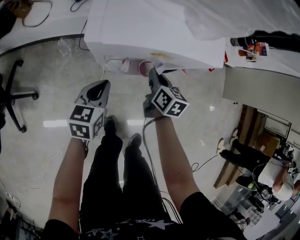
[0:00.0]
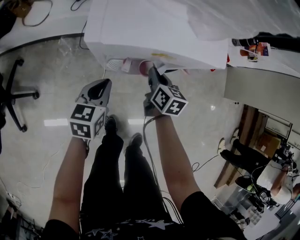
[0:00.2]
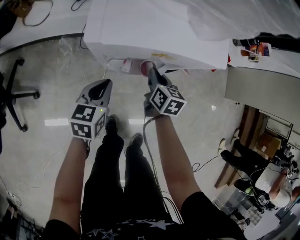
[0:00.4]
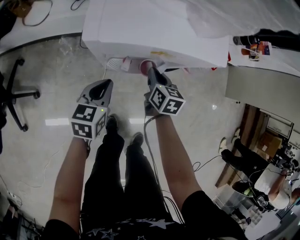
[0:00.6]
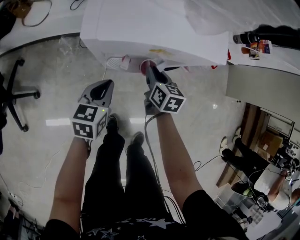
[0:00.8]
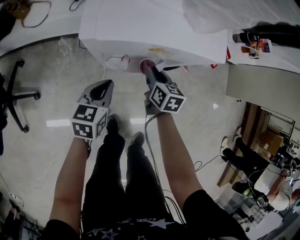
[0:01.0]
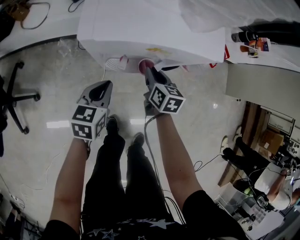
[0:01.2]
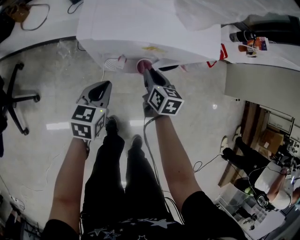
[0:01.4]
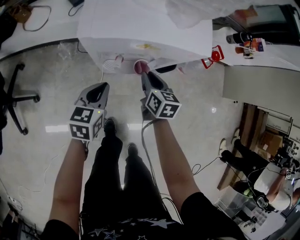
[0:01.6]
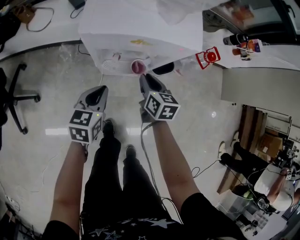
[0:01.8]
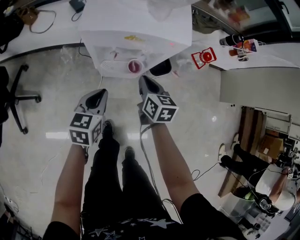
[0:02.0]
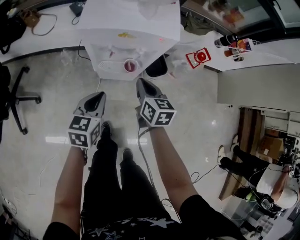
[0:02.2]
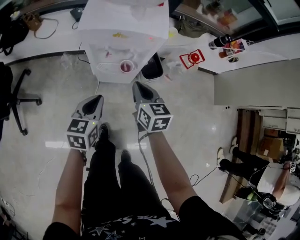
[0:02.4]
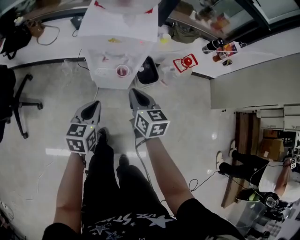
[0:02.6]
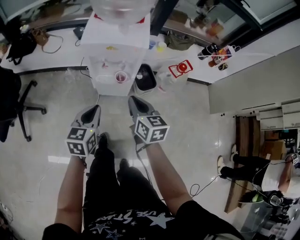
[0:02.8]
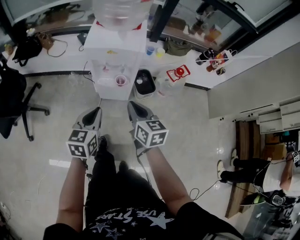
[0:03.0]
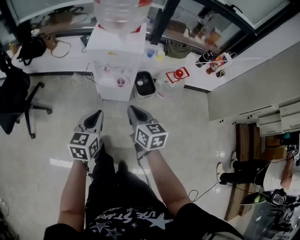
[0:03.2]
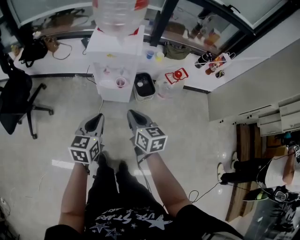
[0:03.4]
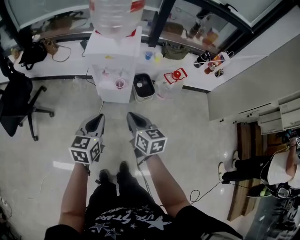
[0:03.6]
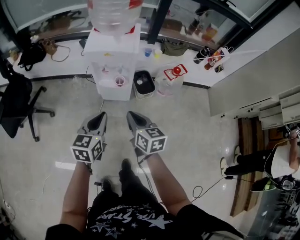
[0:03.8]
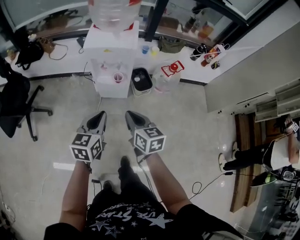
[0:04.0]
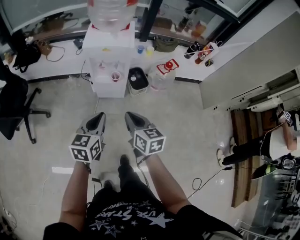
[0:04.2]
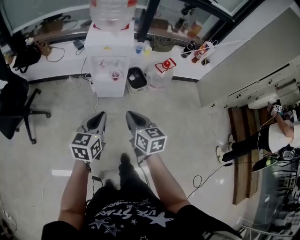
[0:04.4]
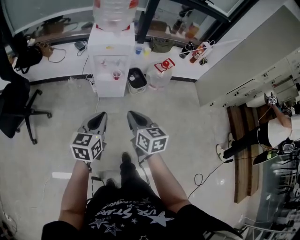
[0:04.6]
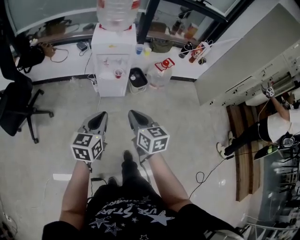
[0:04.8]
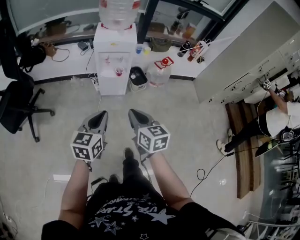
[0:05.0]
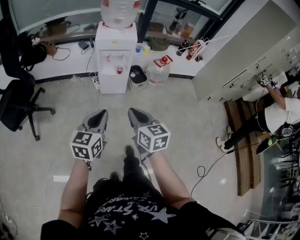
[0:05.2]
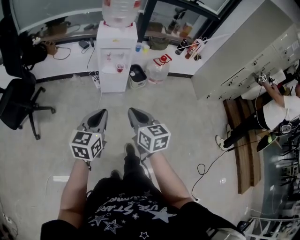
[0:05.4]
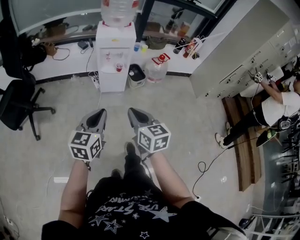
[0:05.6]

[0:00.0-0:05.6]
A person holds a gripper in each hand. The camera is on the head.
0.0 to 1.4 s: The grippers move only a little.
1.4 to 2.8 s: The right gripper is displaced upward and backward by approximately 30 cm, and changes its angle by roughly 20 degrees, while the left gripper is displaced backward and upward by some 25 cm.
2.8 to 4.2 s: Both grippers move backward and upward, roughly 15 cm.
4.2 to 5.6 s: The right gripper moves backward, some 20 cm. Meanwhile the left gripper moves backward and to the left, about 20 cm.

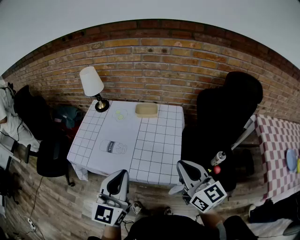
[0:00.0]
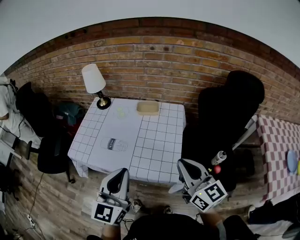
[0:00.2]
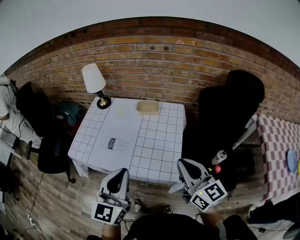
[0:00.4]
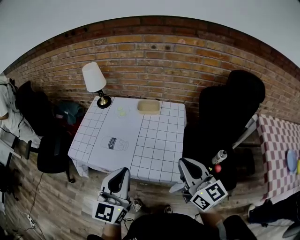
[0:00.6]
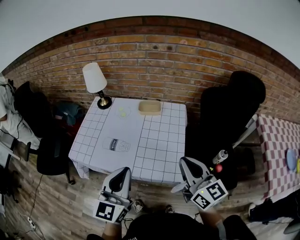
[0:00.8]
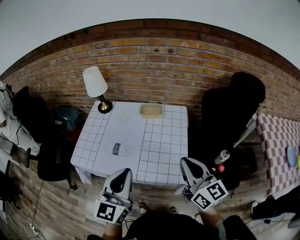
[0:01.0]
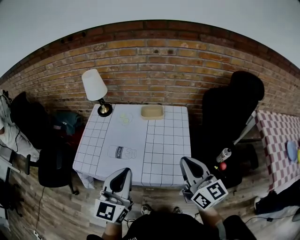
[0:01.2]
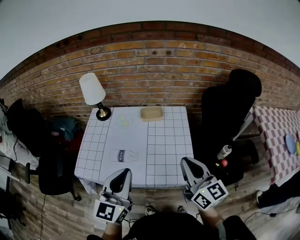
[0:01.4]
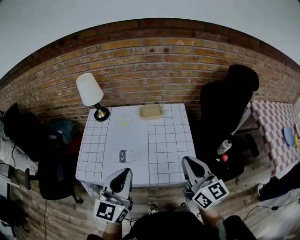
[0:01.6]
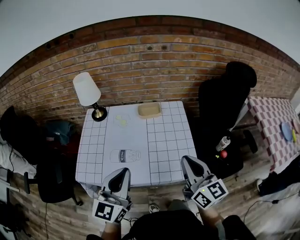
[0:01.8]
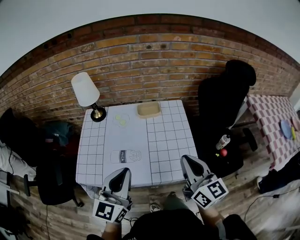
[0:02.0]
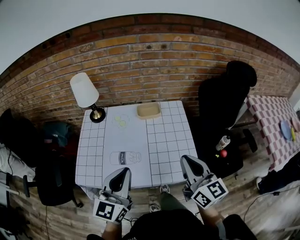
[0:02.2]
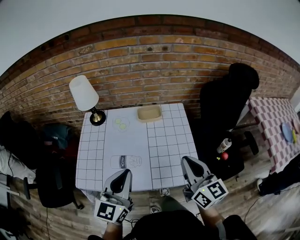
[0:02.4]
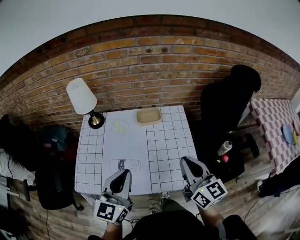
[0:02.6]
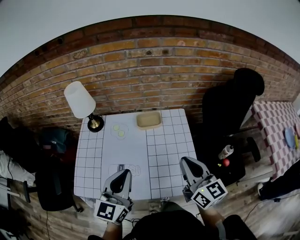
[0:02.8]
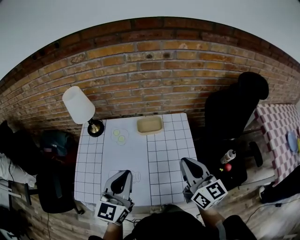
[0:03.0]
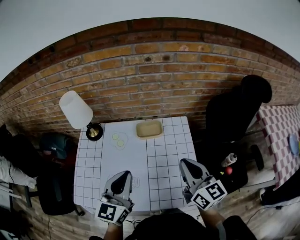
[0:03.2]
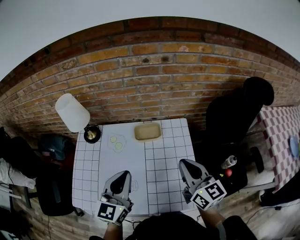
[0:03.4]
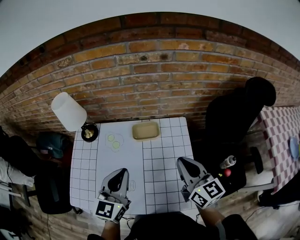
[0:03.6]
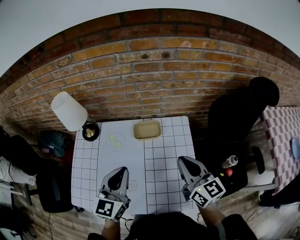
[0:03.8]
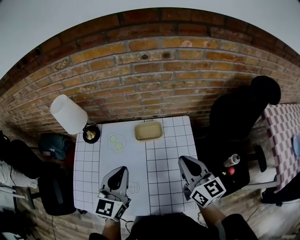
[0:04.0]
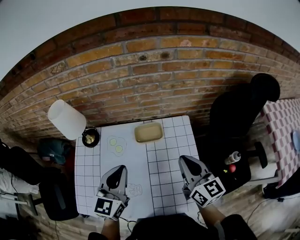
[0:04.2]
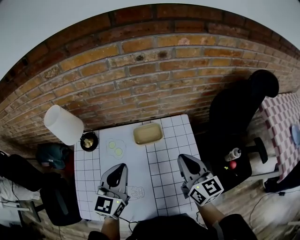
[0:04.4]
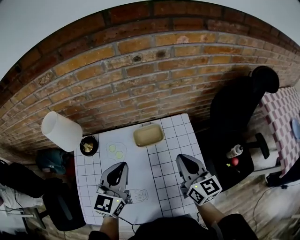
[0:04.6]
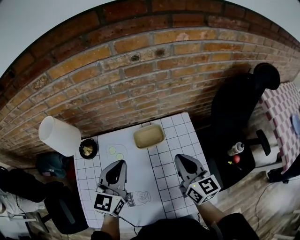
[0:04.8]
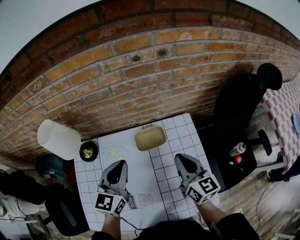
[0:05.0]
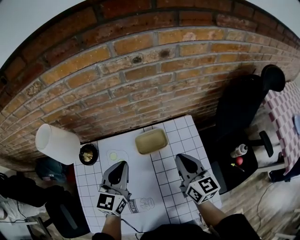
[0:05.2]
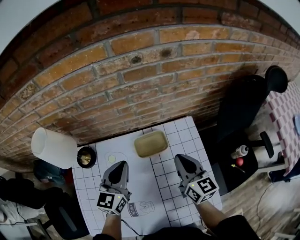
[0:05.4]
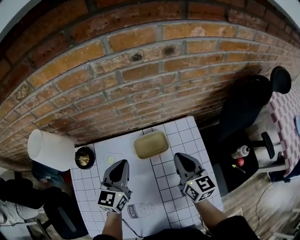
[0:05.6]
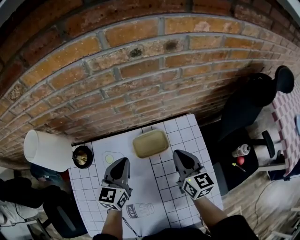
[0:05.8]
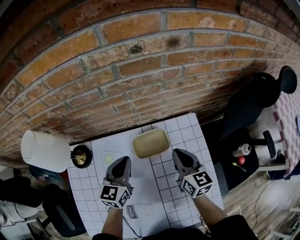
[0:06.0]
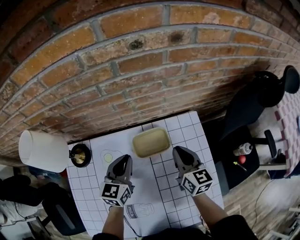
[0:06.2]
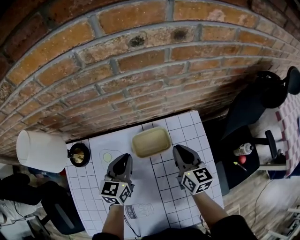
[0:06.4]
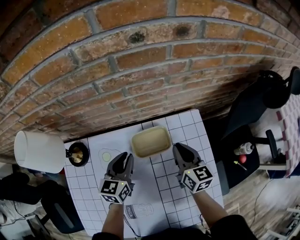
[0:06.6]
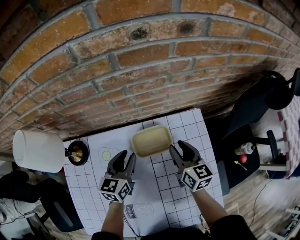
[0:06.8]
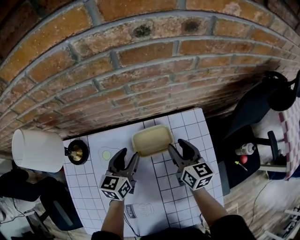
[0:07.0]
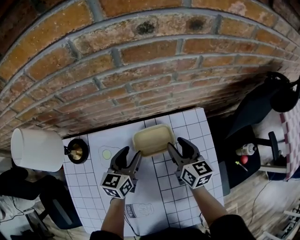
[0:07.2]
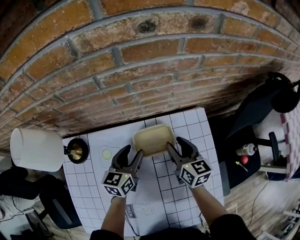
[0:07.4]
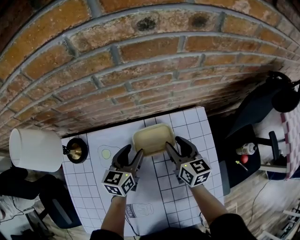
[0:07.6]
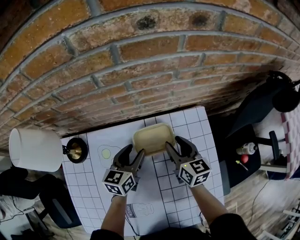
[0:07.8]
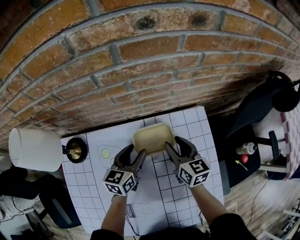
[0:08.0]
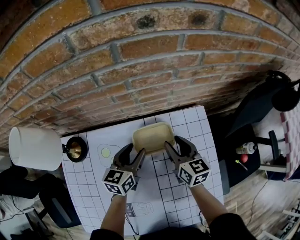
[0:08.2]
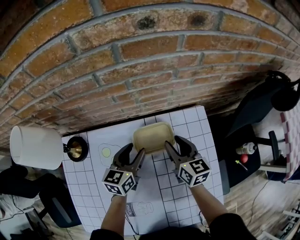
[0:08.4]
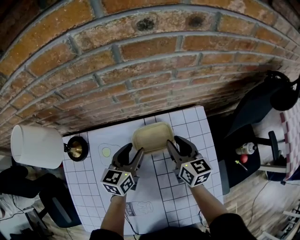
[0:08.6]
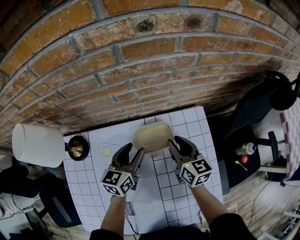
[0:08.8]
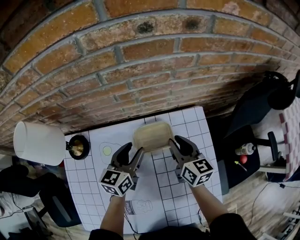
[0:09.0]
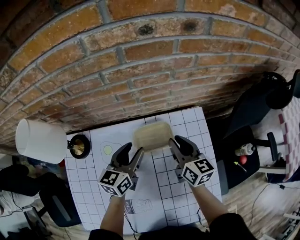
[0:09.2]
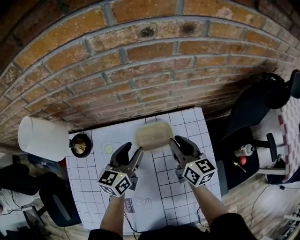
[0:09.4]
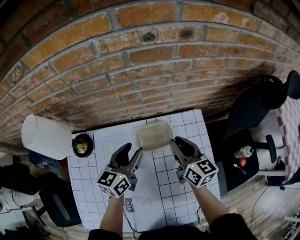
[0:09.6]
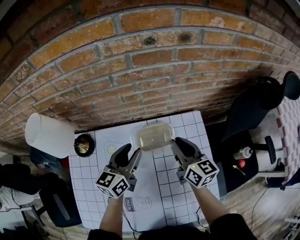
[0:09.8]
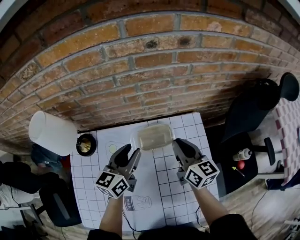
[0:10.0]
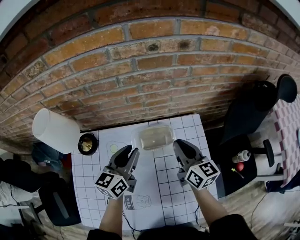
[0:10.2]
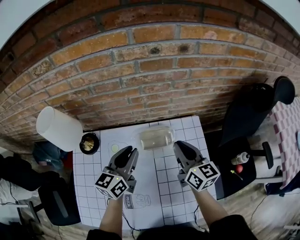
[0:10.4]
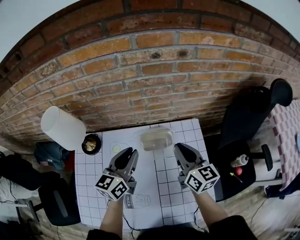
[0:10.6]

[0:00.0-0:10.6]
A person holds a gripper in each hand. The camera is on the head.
0.0 to 1.6 s: The left gripper shifts about 15 cm to the left and forward, while the right gripper heads to the left, covering about 10 cm.
1.6 to 3.0 s: The grippers both shift forward by some 15 cm.
3.0 to 4.6 s: The right gripper heads forward and downward, covering roughly 15 cm, while the left gripper is displaced forward by about 20 cm.
4.6 to 6.0 s: The grippers both shift downward and forward by some 20 cm.
6.0 to 7.6 s: The grippers both shift downward by about 10 cm. The left gripper opens. Meanwhile the right gripper opens.
7.6 to 9.0 s: The grippers move only a little.
9.0 to 10.6 s: Both grippers travel together upward and backward, roughly 15 cm. The left gripper closes up.

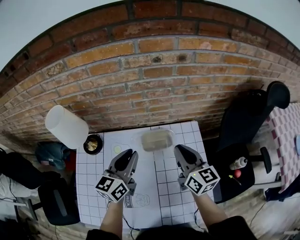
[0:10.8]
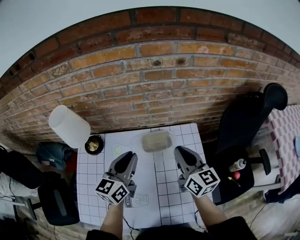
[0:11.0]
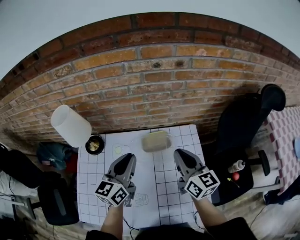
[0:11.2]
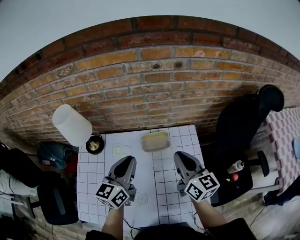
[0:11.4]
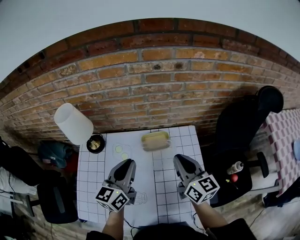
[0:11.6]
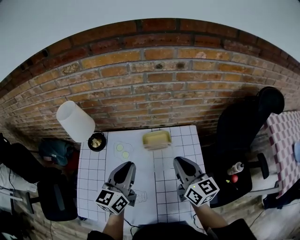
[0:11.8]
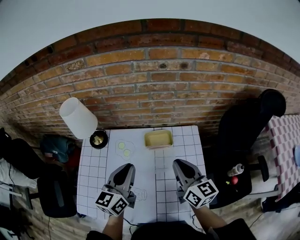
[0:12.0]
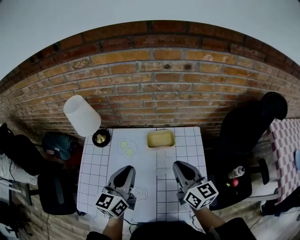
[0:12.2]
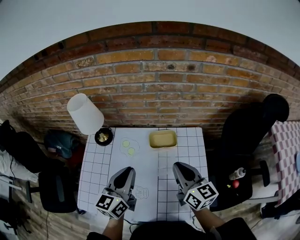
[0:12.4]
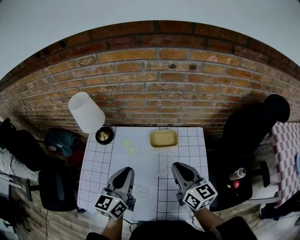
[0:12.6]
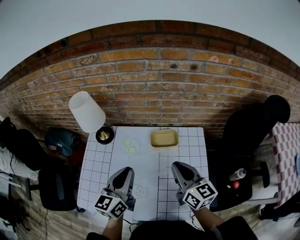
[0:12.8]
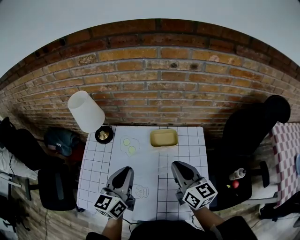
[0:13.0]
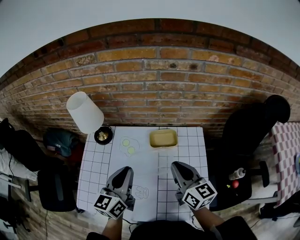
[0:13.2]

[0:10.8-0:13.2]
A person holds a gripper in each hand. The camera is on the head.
10.8 to 12.0 s: The grippers both shift backward by approximately 10 cm.
12.0 to 13.2 s: The grippers stay close to where they were, moving slightly.

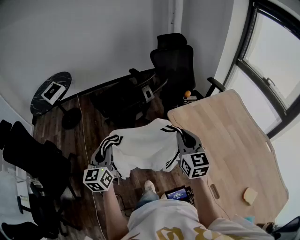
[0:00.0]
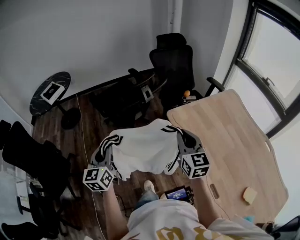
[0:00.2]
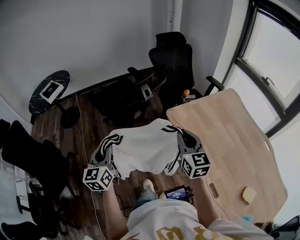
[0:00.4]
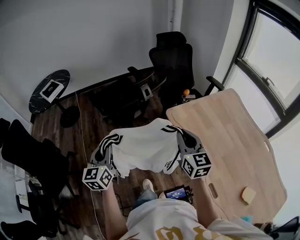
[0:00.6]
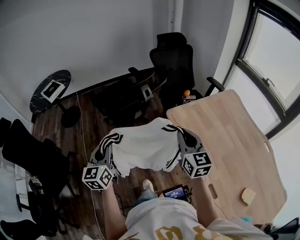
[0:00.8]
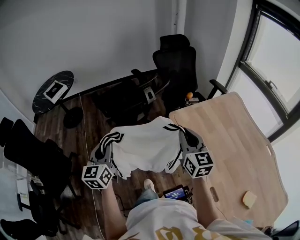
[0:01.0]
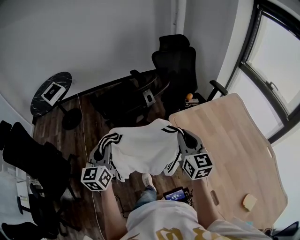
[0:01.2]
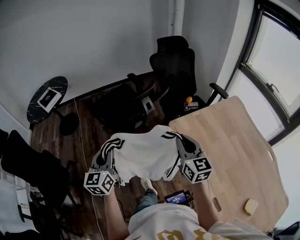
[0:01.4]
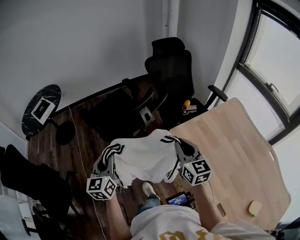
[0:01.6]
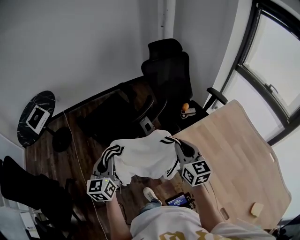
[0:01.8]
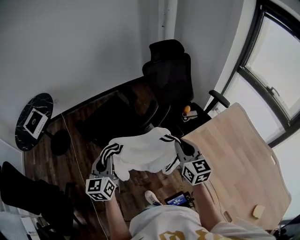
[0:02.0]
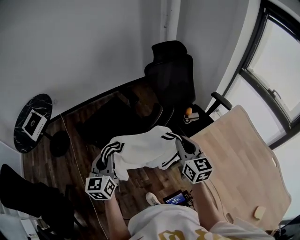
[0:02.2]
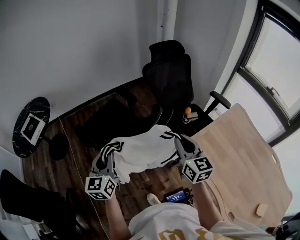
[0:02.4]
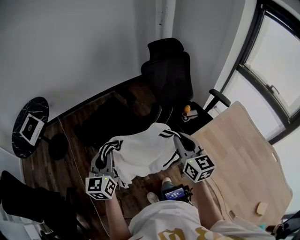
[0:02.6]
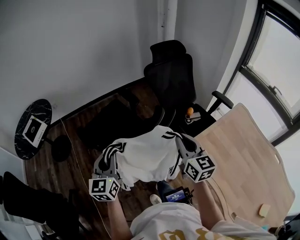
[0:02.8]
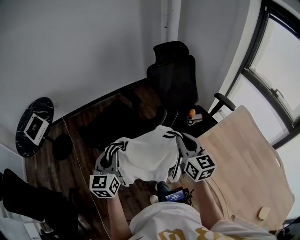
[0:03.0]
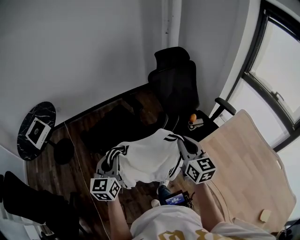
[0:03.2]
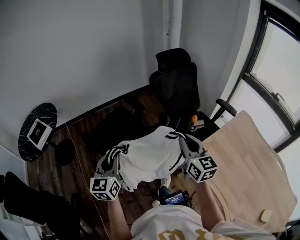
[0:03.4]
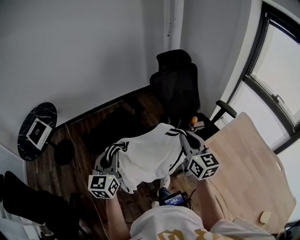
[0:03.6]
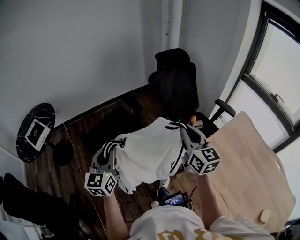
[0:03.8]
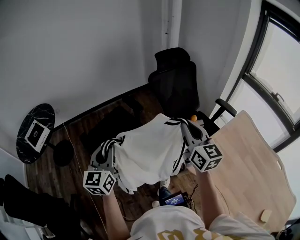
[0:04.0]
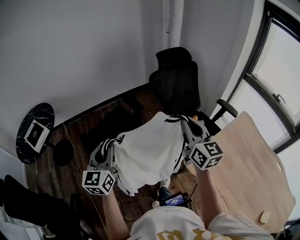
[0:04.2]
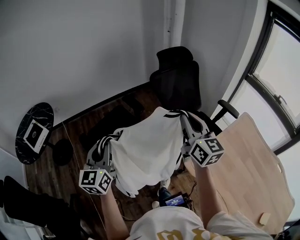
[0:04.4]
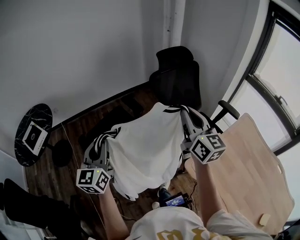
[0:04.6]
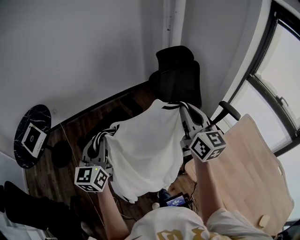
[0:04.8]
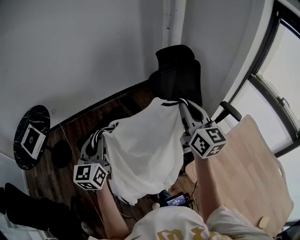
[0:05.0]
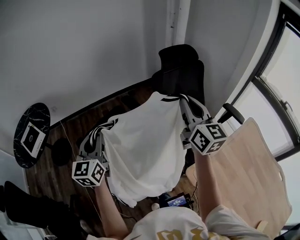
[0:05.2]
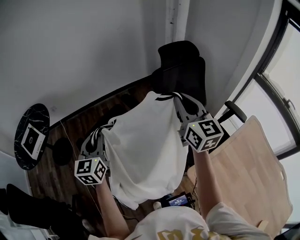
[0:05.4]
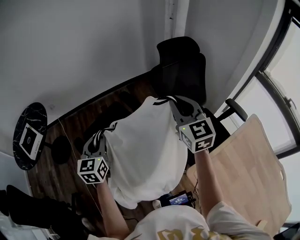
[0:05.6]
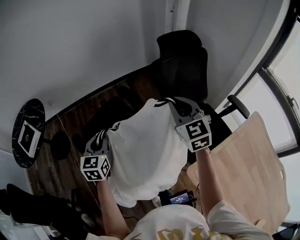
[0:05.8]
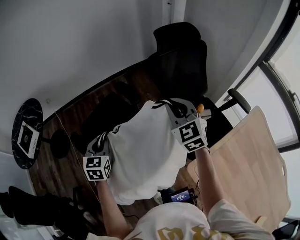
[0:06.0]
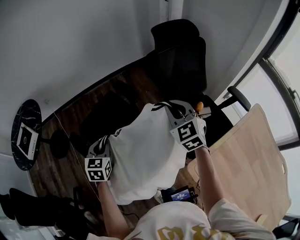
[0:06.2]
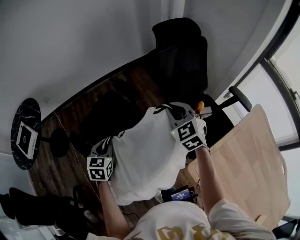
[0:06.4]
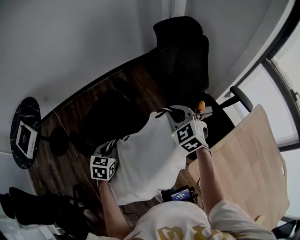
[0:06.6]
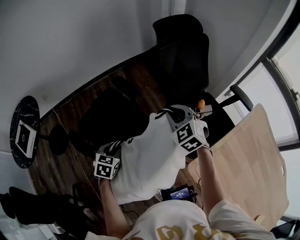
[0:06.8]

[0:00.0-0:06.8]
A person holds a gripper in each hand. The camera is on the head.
0.0 to 1.4 s: Both grippers move forward, some 10 cm.
1.4 to 2.8 s: The two grippers go about 25 cm forward.
2.8 to 4.0 s: The right gripper shifts some 10 cm upward and forward, while the left gripper is displaced forward by approximately 5 cm.
4.0 to 5.4 s: Both grippers travel together forward, about 20 cm.
5.4 to 6.8 s: Both grippers move downward, approximately 25 cm. The right gripper tips its fingers downward by about 40 degrees. Meanwhile the left gripper points its fingers roughly 40 degrees further downward.
